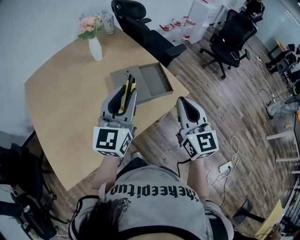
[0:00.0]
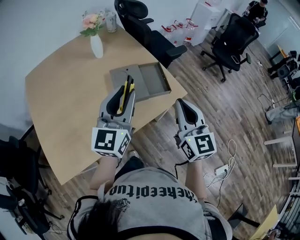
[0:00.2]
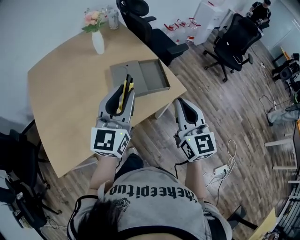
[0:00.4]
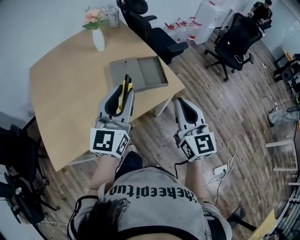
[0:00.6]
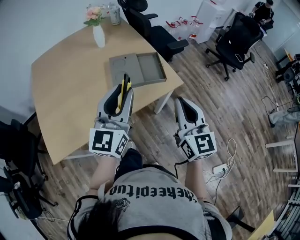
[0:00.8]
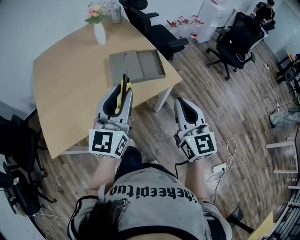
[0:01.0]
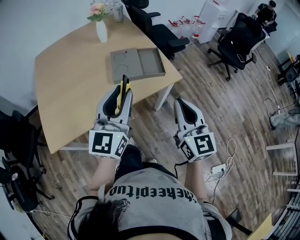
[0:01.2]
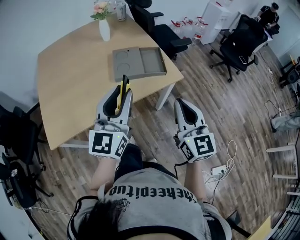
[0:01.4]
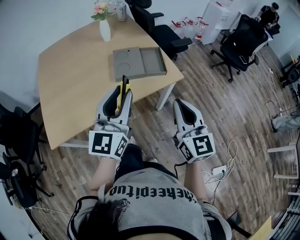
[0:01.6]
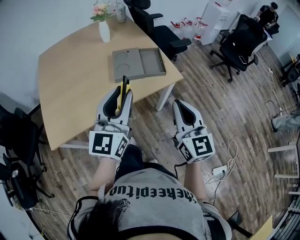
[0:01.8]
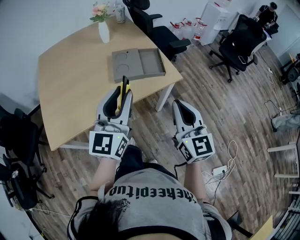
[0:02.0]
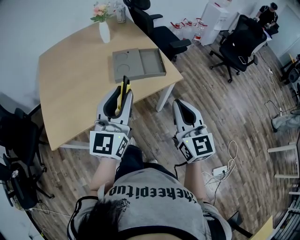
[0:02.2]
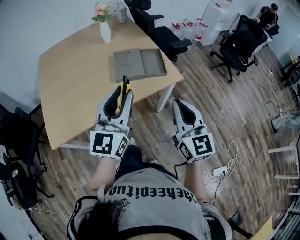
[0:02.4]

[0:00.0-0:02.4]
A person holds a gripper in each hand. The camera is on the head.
0:00.0 to 0:01.2: The right gripper heads backward and to the right, covering roughly 15 cm; the left gripper shifts about 15 cm backward.
0:01.2 to 0:02.4: There are only small adjustments of the grippers.

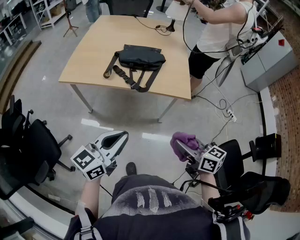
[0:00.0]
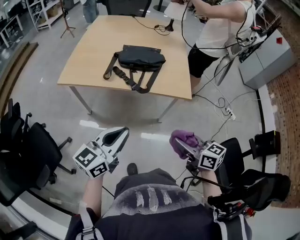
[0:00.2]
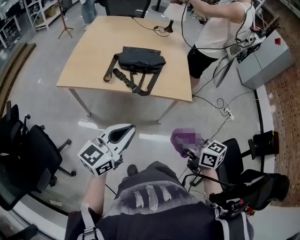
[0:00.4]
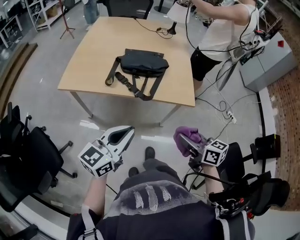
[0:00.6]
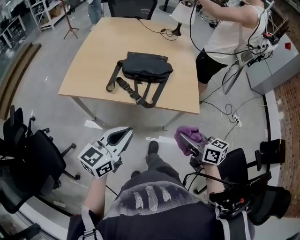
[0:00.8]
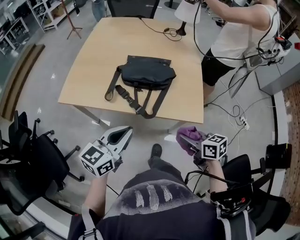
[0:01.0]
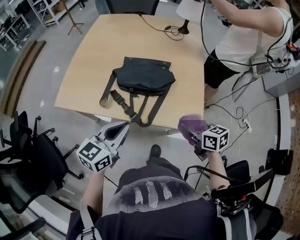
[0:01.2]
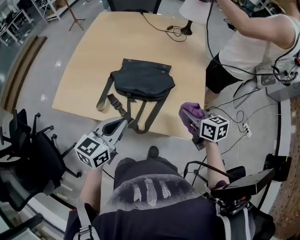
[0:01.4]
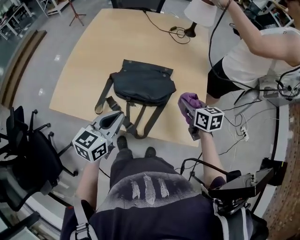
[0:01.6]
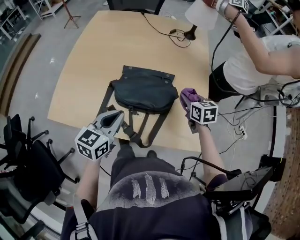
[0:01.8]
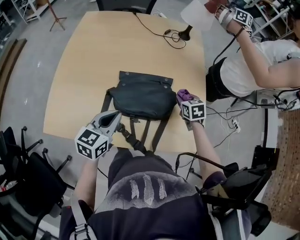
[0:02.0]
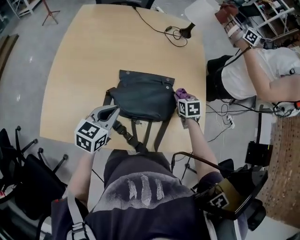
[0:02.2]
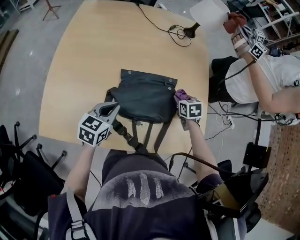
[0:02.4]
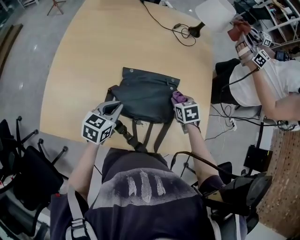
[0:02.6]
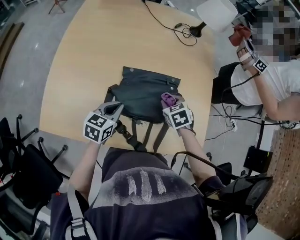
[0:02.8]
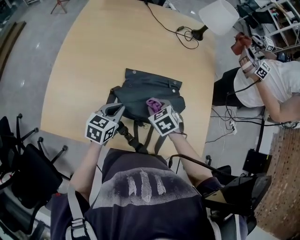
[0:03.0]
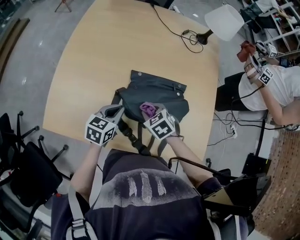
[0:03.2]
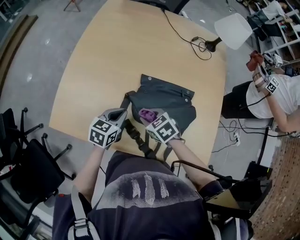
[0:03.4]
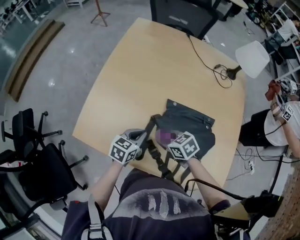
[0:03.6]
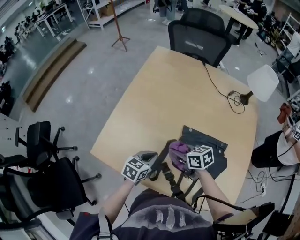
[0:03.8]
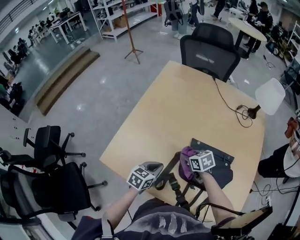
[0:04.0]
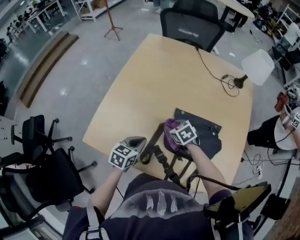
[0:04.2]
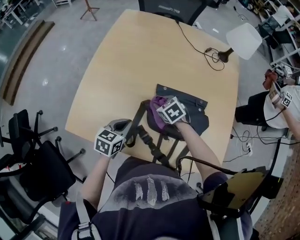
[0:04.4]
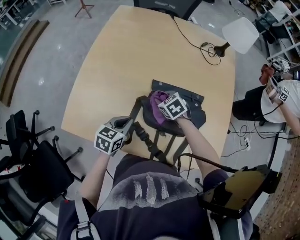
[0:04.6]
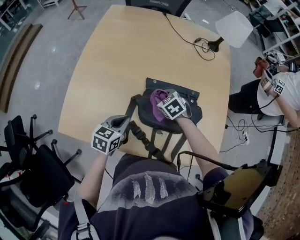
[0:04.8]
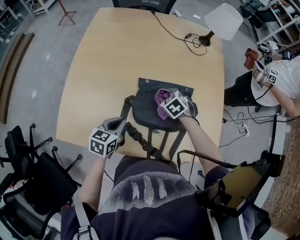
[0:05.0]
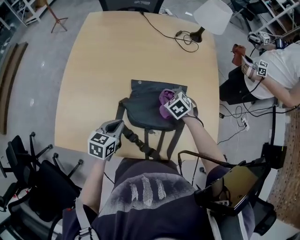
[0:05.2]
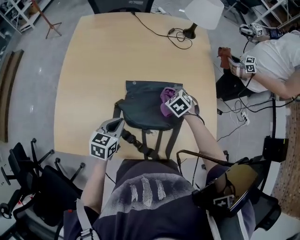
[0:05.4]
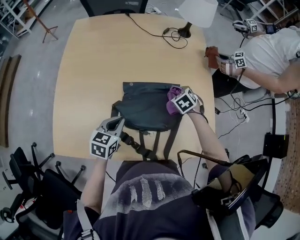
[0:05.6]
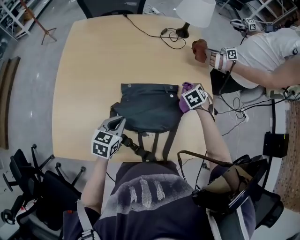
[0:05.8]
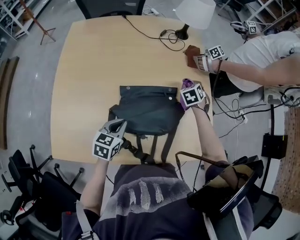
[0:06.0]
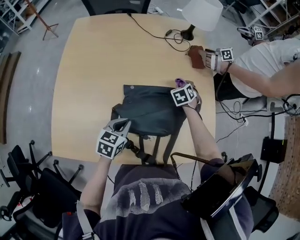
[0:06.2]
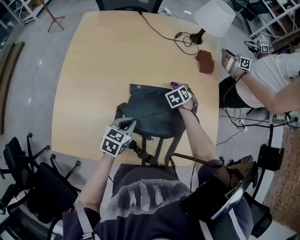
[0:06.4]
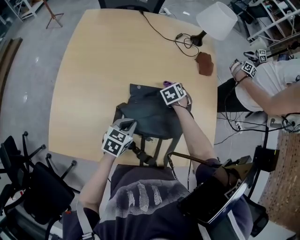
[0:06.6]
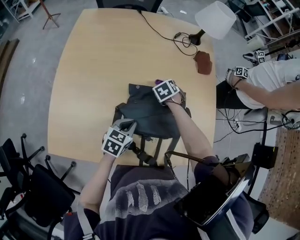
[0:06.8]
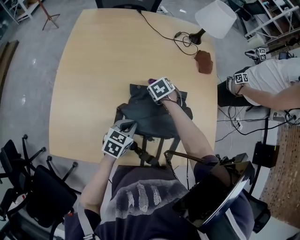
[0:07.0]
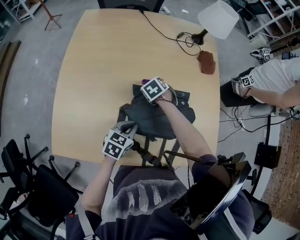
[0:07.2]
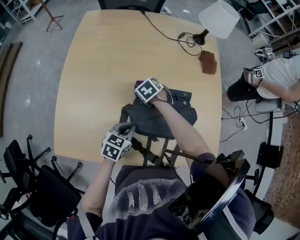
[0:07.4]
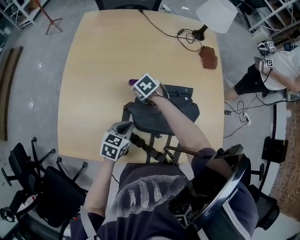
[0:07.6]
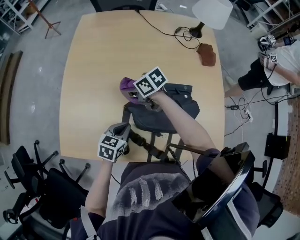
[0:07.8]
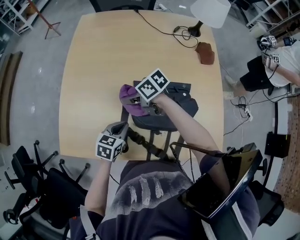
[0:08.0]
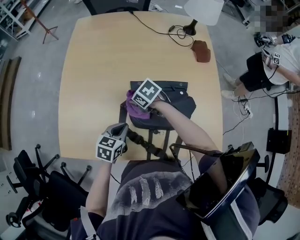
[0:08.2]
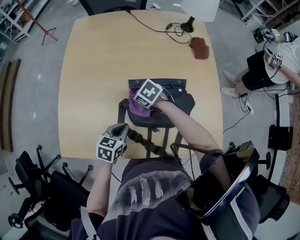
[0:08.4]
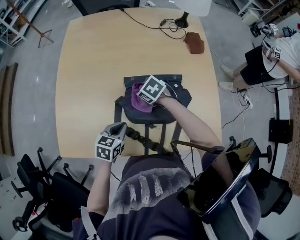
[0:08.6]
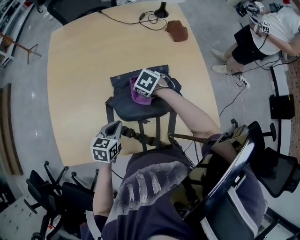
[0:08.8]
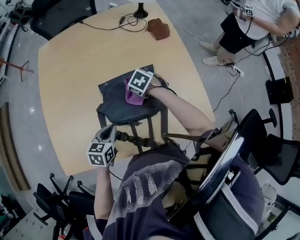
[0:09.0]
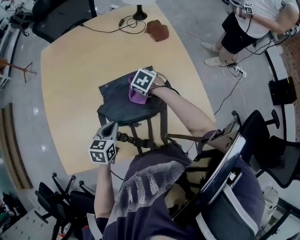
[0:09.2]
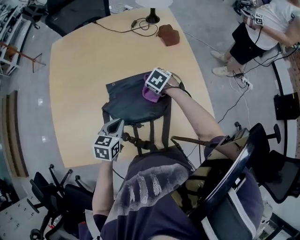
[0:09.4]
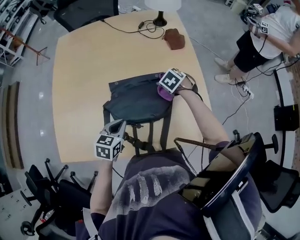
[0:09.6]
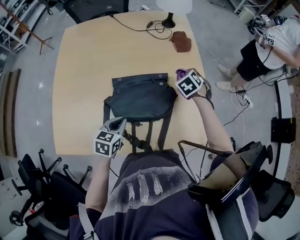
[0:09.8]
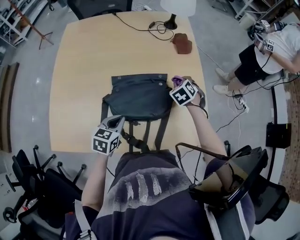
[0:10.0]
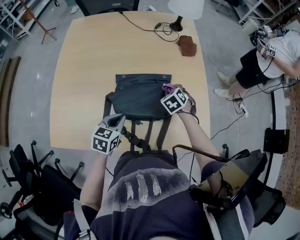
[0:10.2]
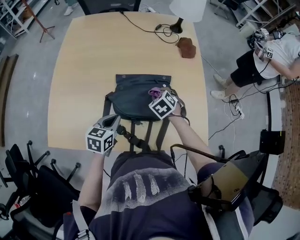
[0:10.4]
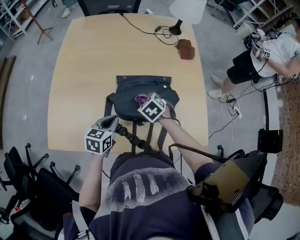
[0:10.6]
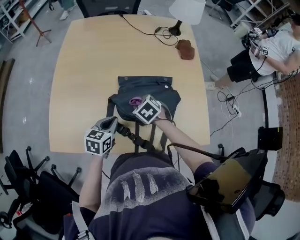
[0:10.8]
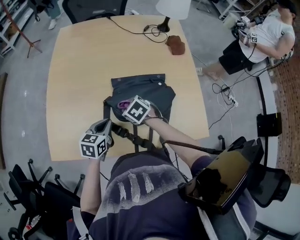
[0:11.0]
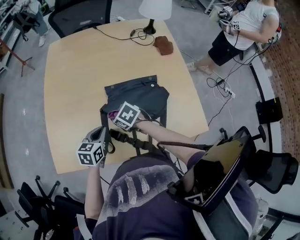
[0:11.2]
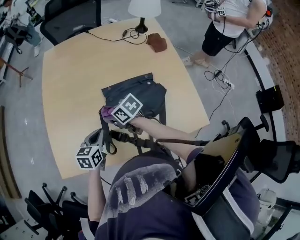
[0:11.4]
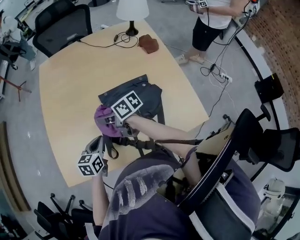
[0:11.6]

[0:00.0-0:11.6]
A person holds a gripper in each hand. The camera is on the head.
0:00.0 to 0:01.4: The grippers both shift forward by some 40 cm.
0:01.4 to 0:02.8: The left gripper shifts some 30 cm forward, downward and to the left. The right gripper moves forward, to the left and downward, some 25 cm, and angles its fingers downward, by roughly 30 degrees.
0:02.8 to 0:04.4: The left gripper moves approximately 10 cm. The right gripper moves about 5 cm upward and comes back, and rotates approximately 20 degrees.
0:04.4 to 0:05.8: The left gripper shifts by approximately 10 cm. Meanwhile the right gripper moves some 35 cm, and swivels some 40 degrees.
0:05.8 to 0:07.2: The right gripper shifts roughly 25 cm to the left.
0:07.2 to 0:08.8: The right gripper reaches about 10 cm upward, then returns.
0:08.8 to 0:10.2: The right gripper reaches approximately 5 cm upward, then returns, and turns by some 30 degrees, while the left gripper shifts by some 5 cm.
0:10.2 to 0:11.6: The left gripper changes place by roughly 10 cm. The right gripper changes place by approximately 30 cm, and tips its fingers upward by about 40 degrees.

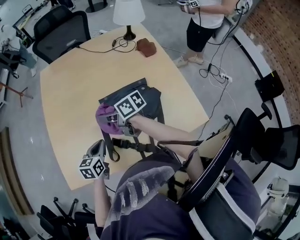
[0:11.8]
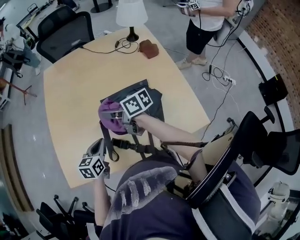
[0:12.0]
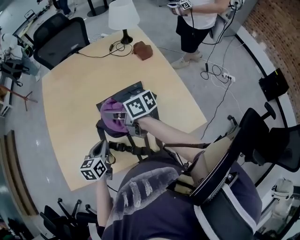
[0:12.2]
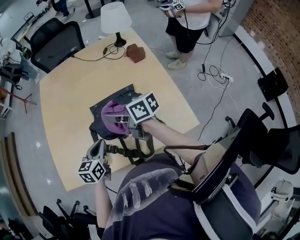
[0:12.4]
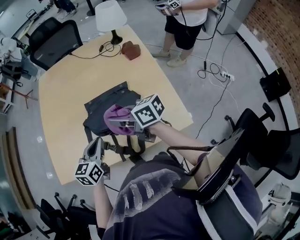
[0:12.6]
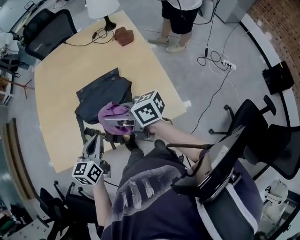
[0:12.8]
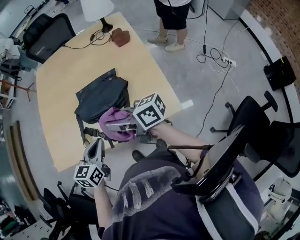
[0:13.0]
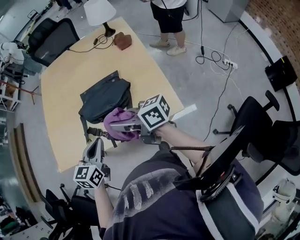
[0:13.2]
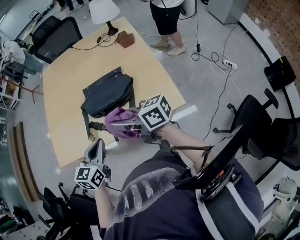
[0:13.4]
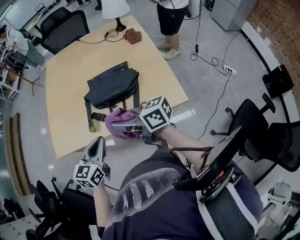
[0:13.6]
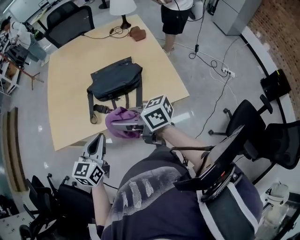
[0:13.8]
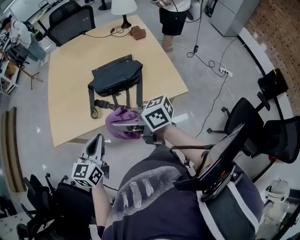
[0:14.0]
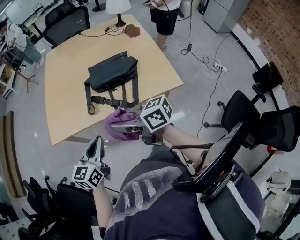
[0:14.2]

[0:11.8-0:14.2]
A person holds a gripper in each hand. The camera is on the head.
0:11.8 to 0:13.0: The right gripper heads backward and to the right, covering some 30 cm. Meanwhile the left gripper moves backward, to the right and upward, about 25 cm.
0:13.0 to 0:14.2: The grippers both shift to the left and backward by roughly 25 cm.

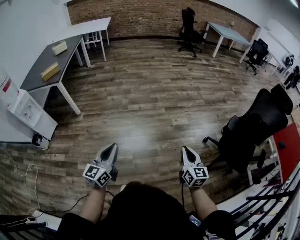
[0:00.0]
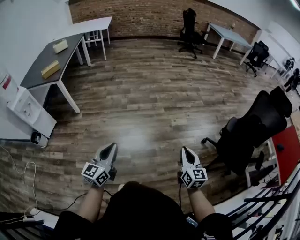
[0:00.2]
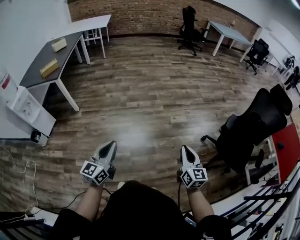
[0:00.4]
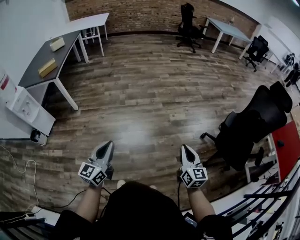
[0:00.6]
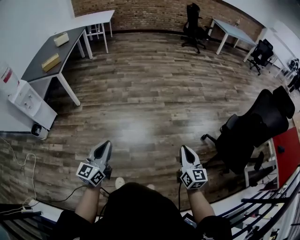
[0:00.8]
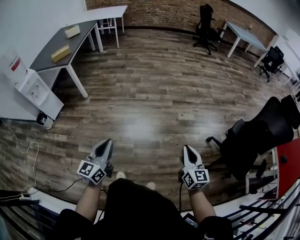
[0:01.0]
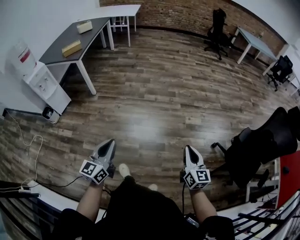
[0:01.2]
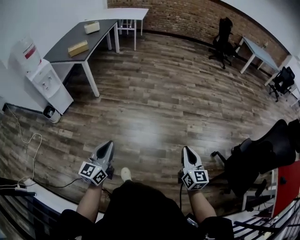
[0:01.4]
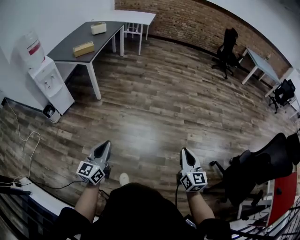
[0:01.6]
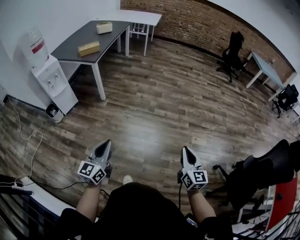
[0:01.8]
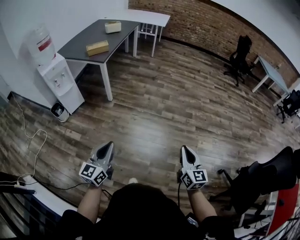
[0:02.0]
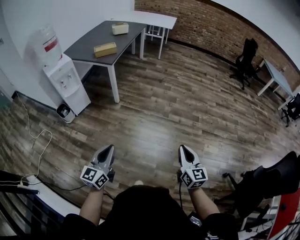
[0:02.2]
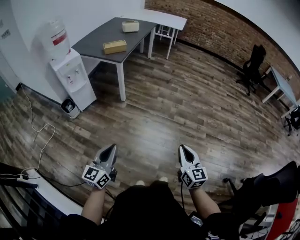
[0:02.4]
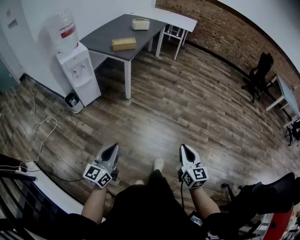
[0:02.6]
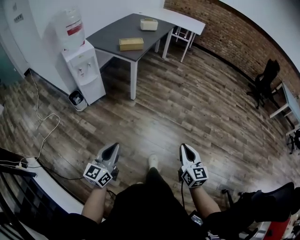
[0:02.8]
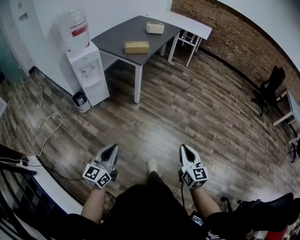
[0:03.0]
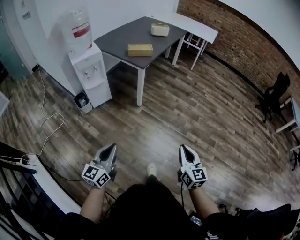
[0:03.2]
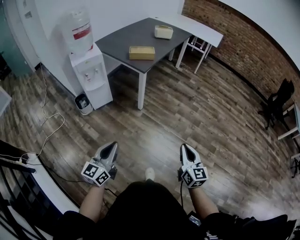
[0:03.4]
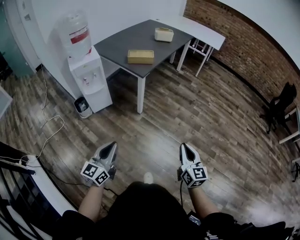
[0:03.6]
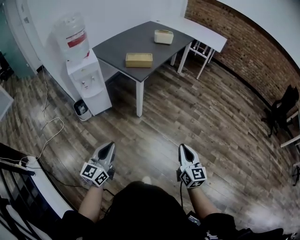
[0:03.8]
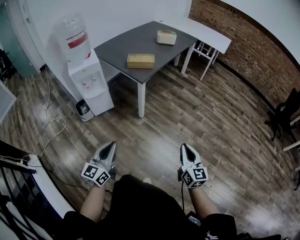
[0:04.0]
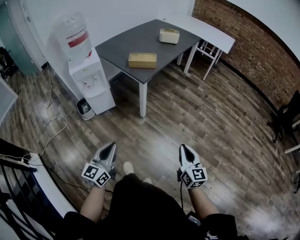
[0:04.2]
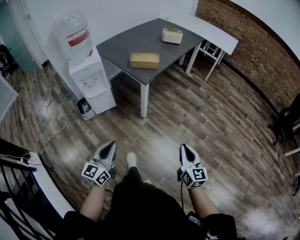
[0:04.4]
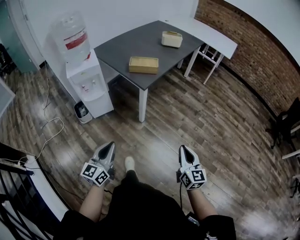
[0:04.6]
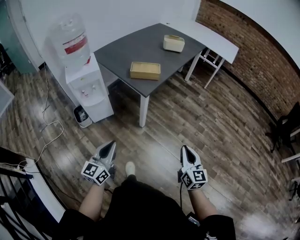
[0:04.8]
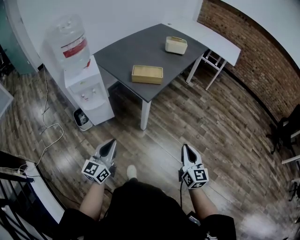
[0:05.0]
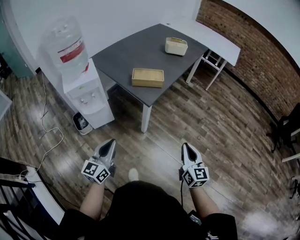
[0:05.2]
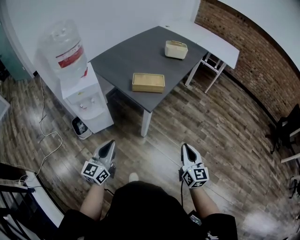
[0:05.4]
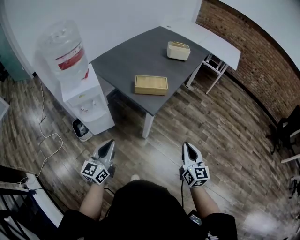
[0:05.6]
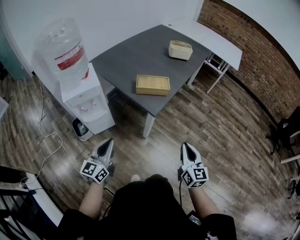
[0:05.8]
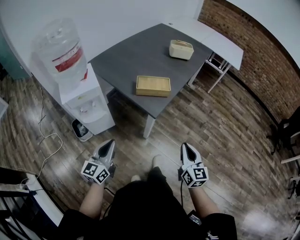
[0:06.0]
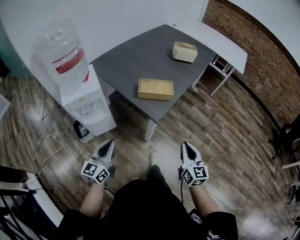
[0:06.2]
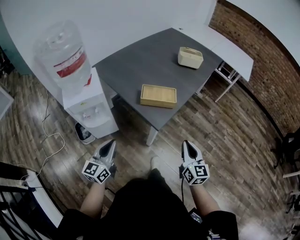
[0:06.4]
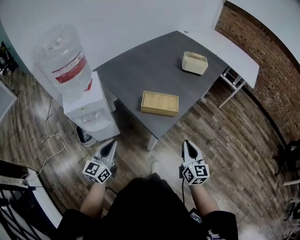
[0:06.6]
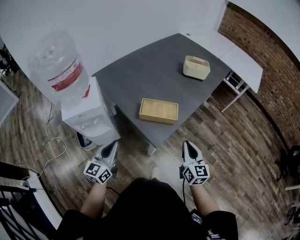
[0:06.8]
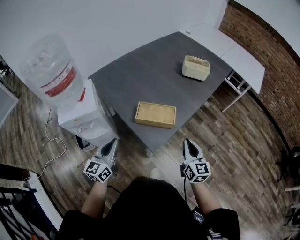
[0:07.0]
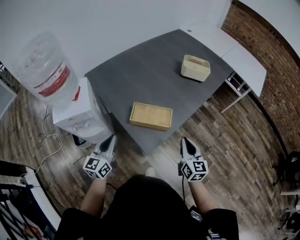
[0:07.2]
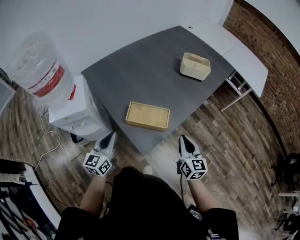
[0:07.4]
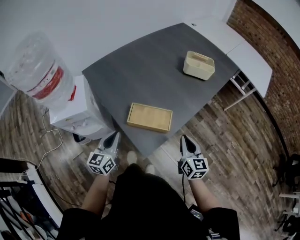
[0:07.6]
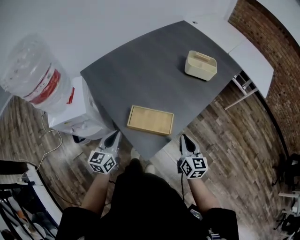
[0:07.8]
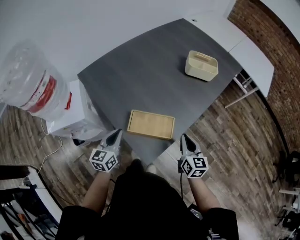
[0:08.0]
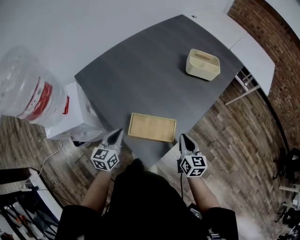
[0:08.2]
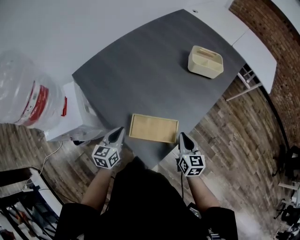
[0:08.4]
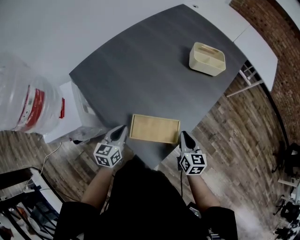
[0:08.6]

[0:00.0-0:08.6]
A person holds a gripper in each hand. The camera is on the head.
0:00.0 to 0:01.4: Both grippers travel together to the left, some 5 cm.
0:01.4 to 0:02.8: The two grippers go roughly 30 cm to the left and forward. The right gripper turns by about 20 degrees.
0:02.8 to 0:04.4: The two grippers go about 25 cm forward.
0:04.4 to 0:05.8: Both grippers travel together forward and to the left, roughly 25 cm.
0:05.8 to 0:07.2: Both grippers move forward, approximately 25 cm.
0:07.2 to 0:08.6: The two grippers go roughly 15 cm forward and downward. The left gripper swivels approximately 20 degrees.
